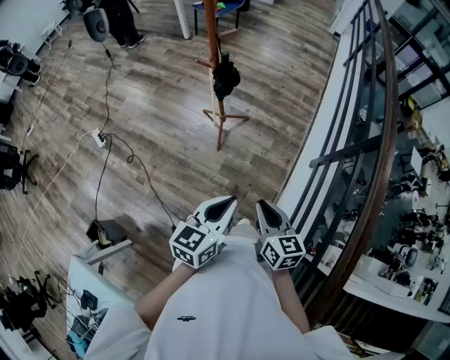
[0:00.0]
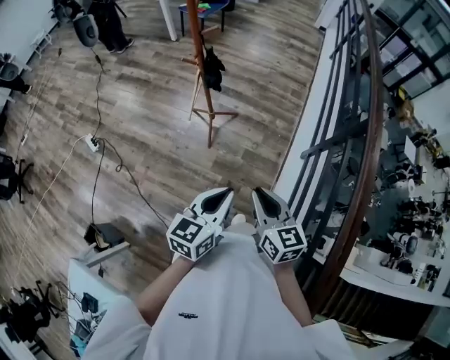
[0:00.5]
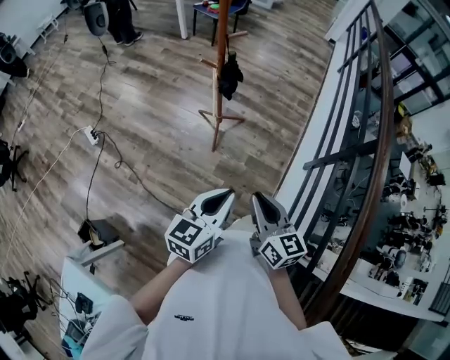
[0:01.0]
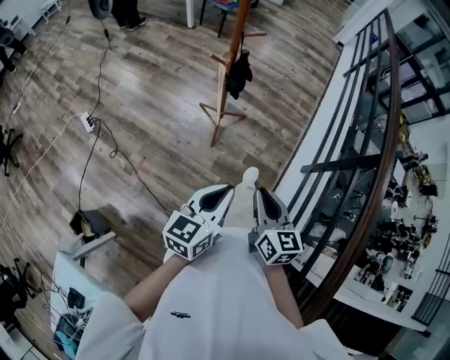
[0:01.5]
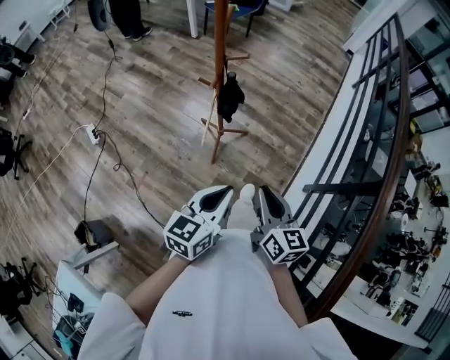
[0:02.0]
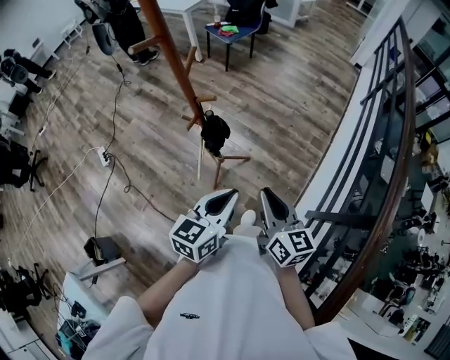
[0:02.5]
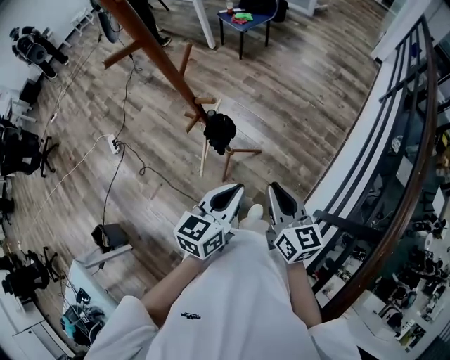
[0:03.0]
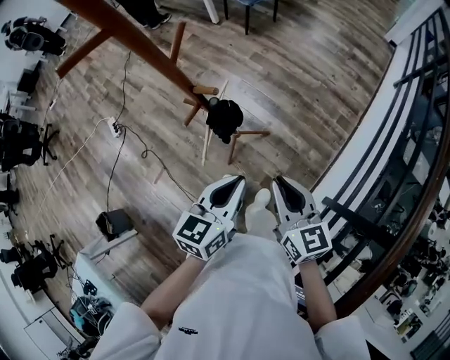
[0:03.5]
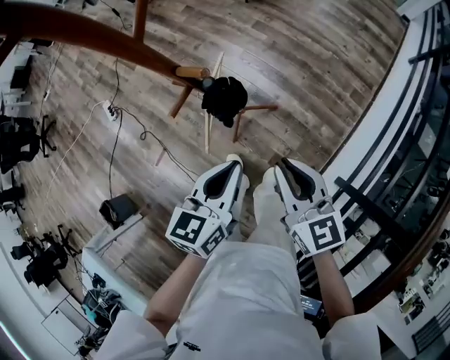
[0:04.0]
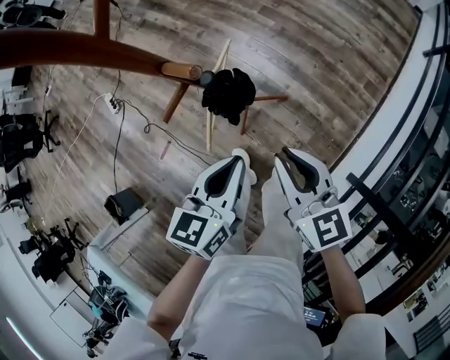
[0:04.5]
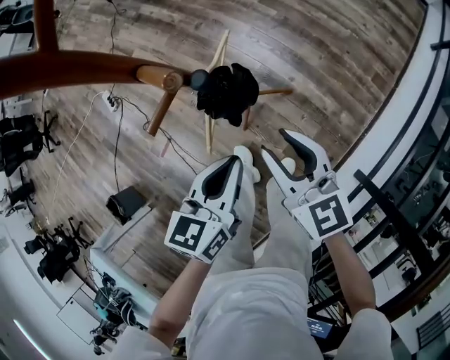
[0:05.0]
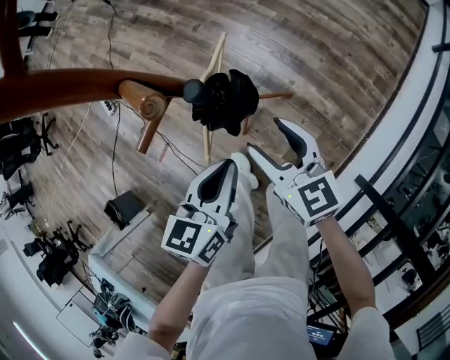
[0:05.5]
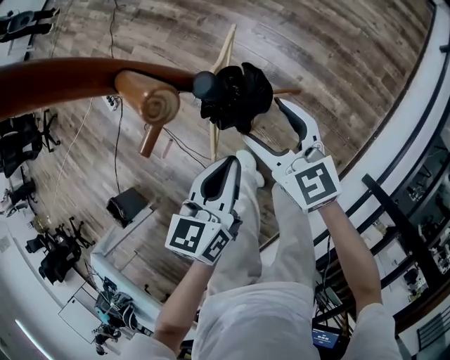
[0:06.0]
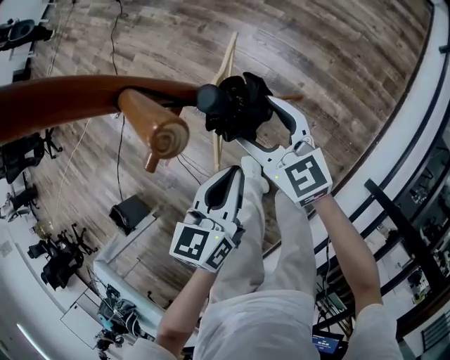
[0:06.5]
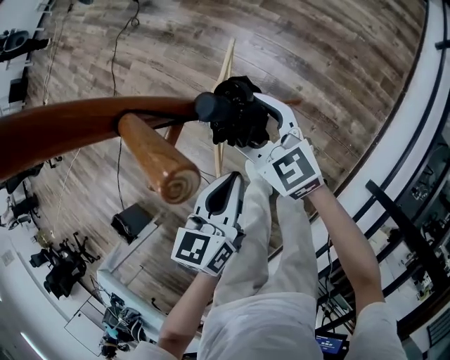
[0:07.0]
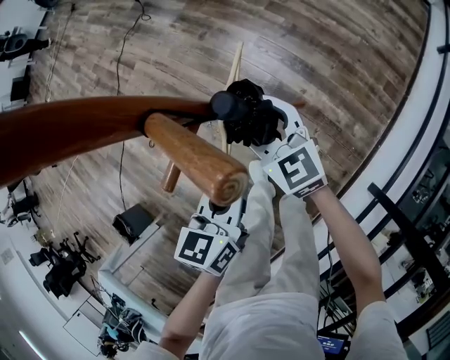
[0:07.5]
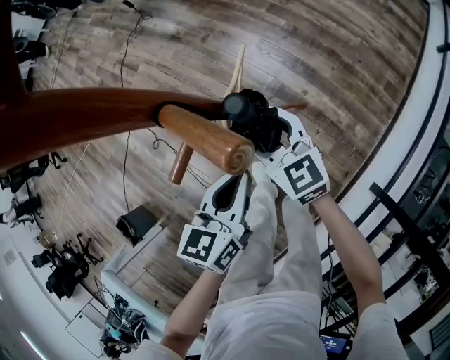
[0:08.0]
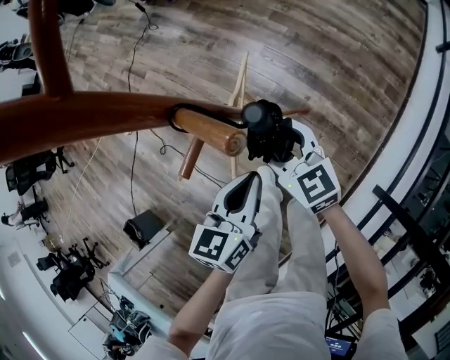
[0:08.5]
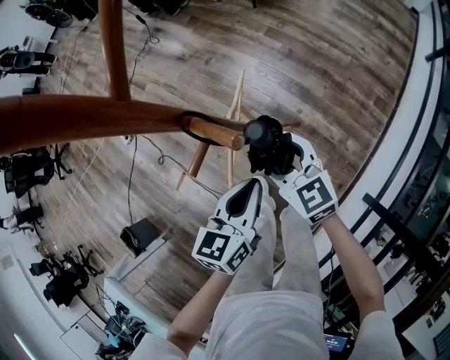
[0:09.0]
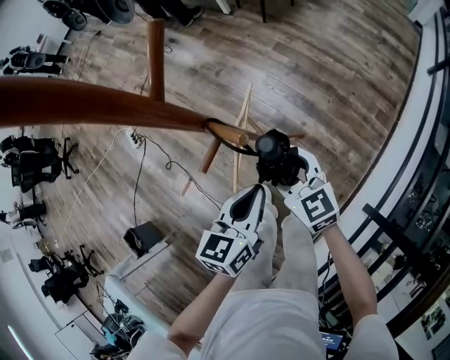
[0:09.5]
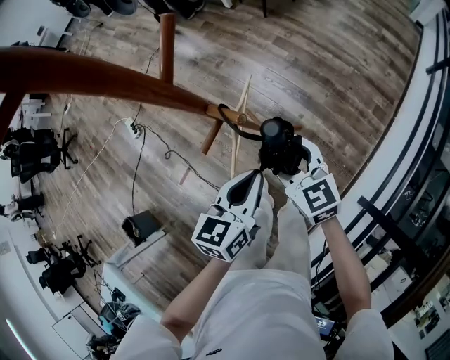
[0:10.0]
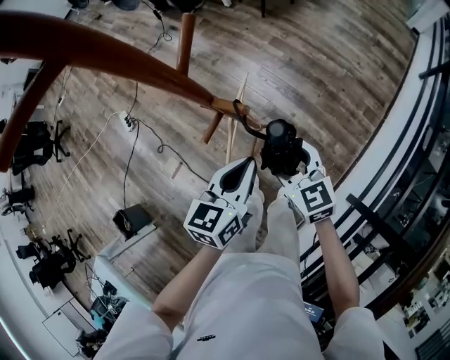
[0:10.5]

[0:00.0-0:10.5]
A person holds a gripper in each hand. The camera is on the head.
0:00.0 to 0:02.0: The two grippers go some 20 cm forward.
0:02.0 to 0:04.0: The left gripper travels forward and downward by roughly 30 cm. Meanwhile the right gripper shifts approximately 30 cm forward, and changes its angle by about 20 degrees.
0:04.0 to 0:06.5: The left gripper travels downward by roughly 20 cm. The right gripper moves downward, forward and to the left, about 30 cm, and opens its fingers.
0:06.5 to 0:08.5: The grippers stay close to where they were, moving slightly.
0:08.5 to 0:10.5: The right gripper moves upward, backward and to the right, about 20 cm, while the left gripper travels upward by about 15 cm.

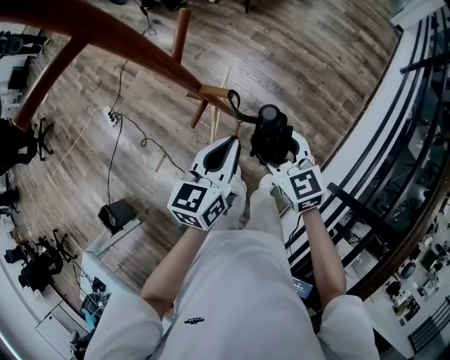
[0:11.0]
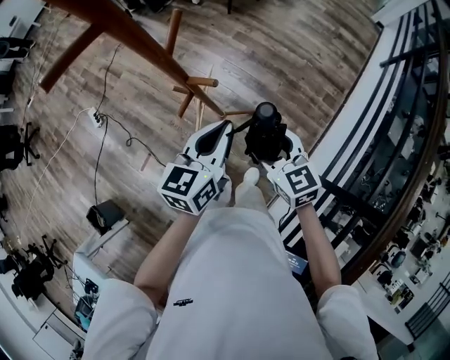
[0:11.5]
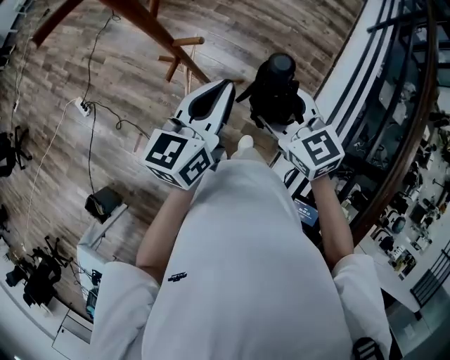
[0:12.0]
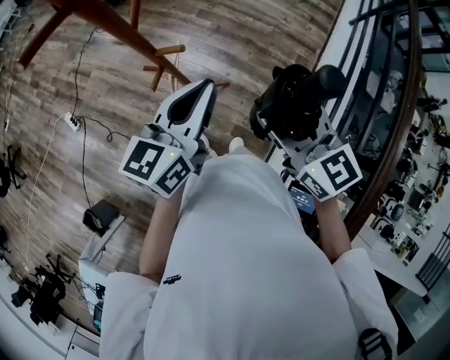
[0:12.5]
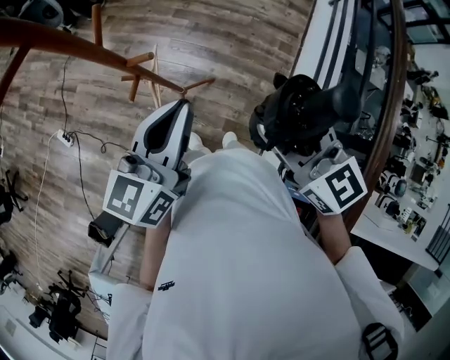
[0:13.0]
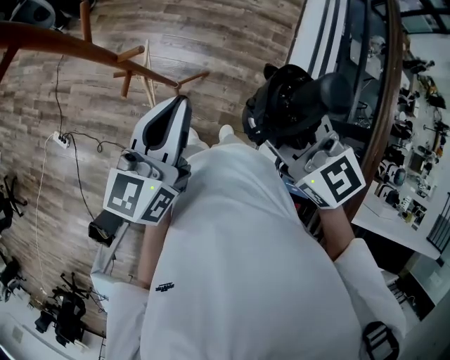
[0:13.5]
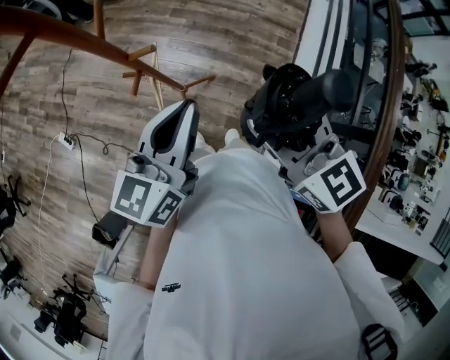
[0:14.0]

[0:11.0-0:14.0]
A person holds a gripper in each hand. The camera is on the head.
0:11.0 to 0:12.5: The right gripper heads upward and backward, covering roughly 20 cm. The left gripper is displaced upward by approximately 15 cm, and swivels some 20 degrees.
0:12.5 to 0:14.0: The right gripper shifts by roughly 5 cm. Meanwhile the left gripper heads backward, covering roughly 5 cm.

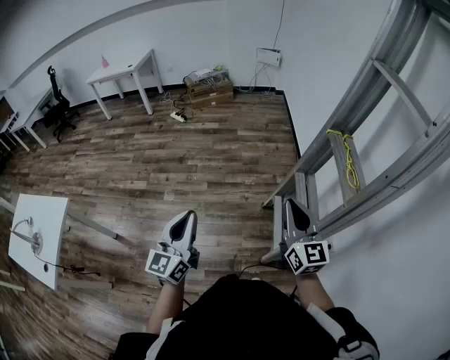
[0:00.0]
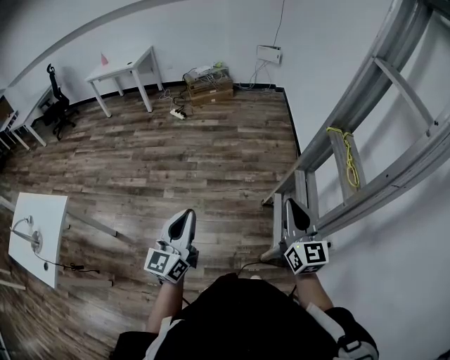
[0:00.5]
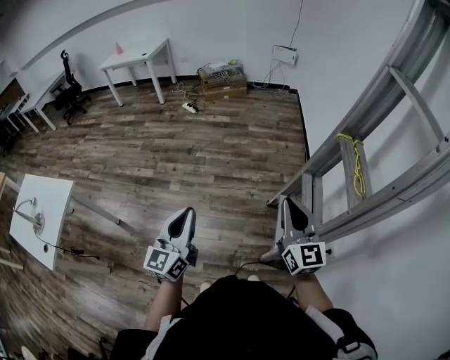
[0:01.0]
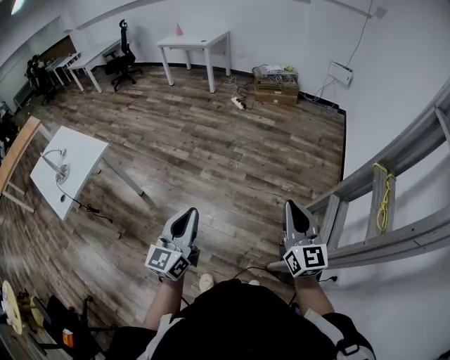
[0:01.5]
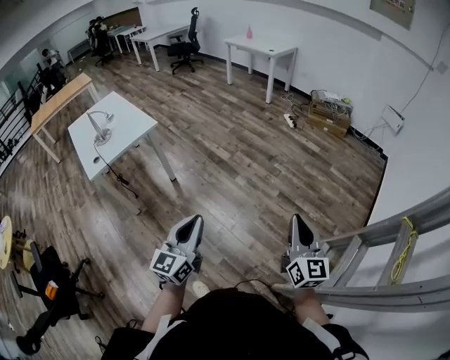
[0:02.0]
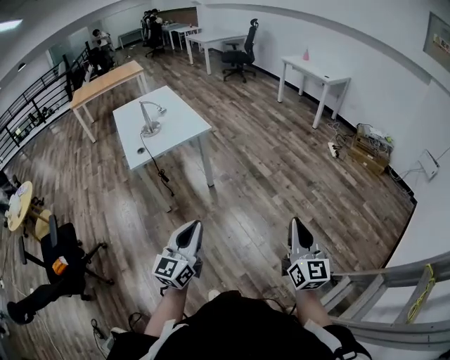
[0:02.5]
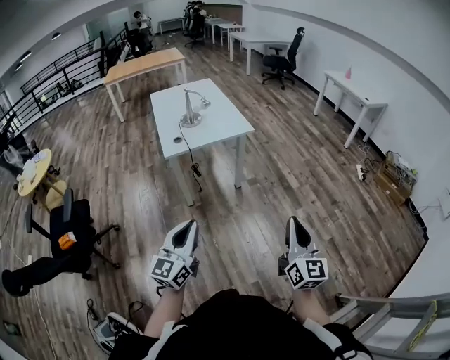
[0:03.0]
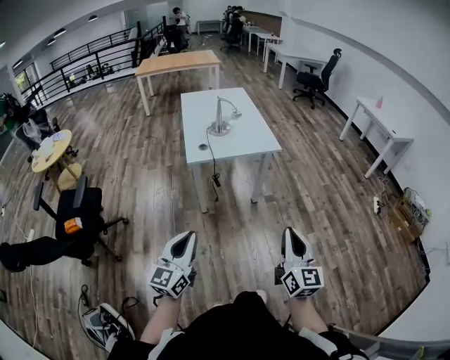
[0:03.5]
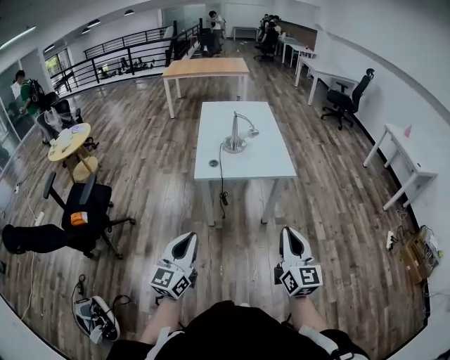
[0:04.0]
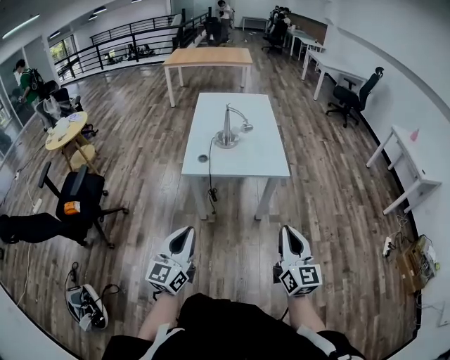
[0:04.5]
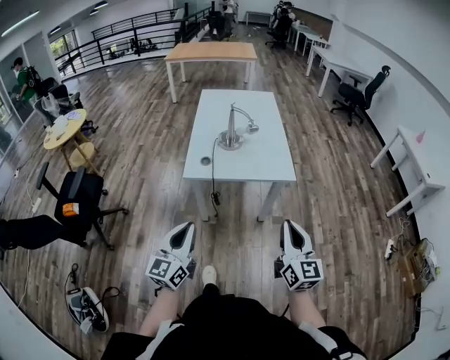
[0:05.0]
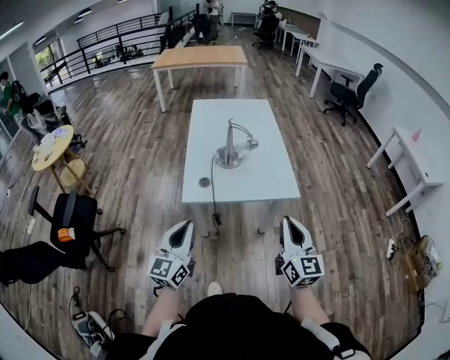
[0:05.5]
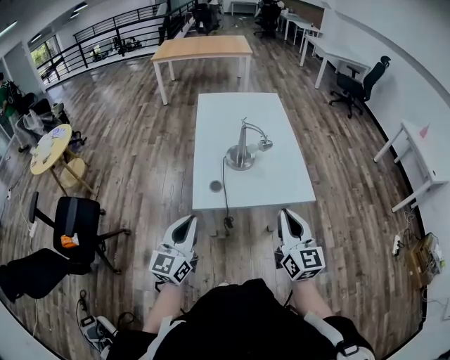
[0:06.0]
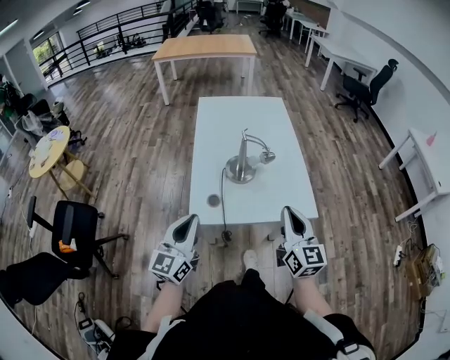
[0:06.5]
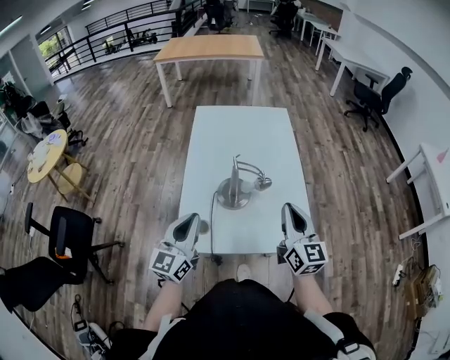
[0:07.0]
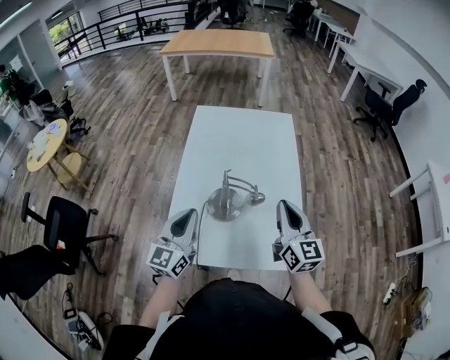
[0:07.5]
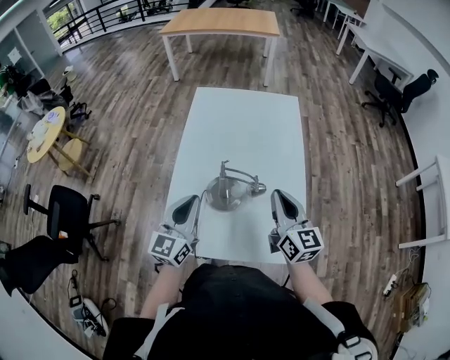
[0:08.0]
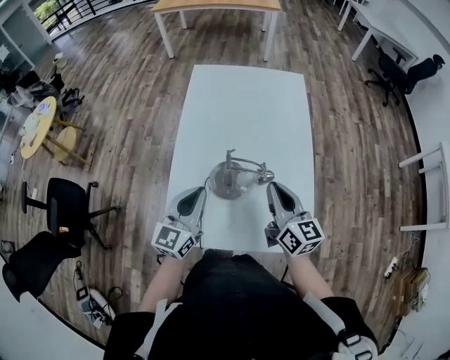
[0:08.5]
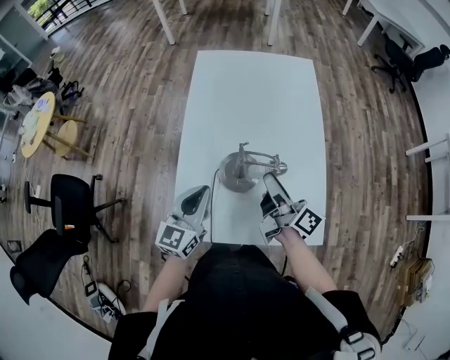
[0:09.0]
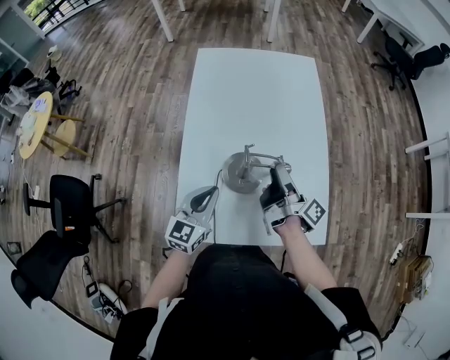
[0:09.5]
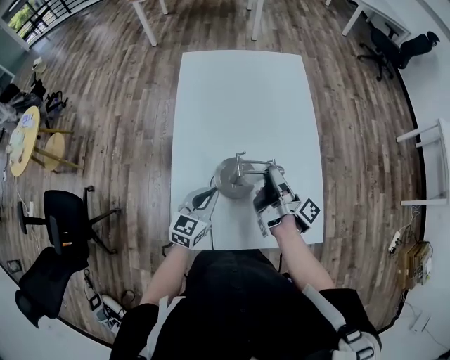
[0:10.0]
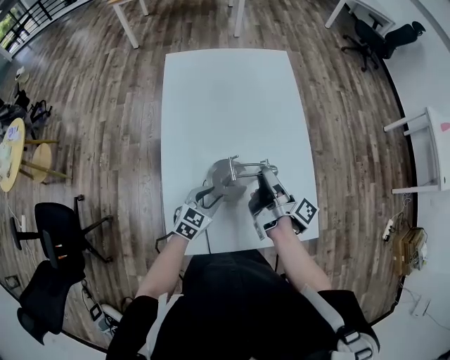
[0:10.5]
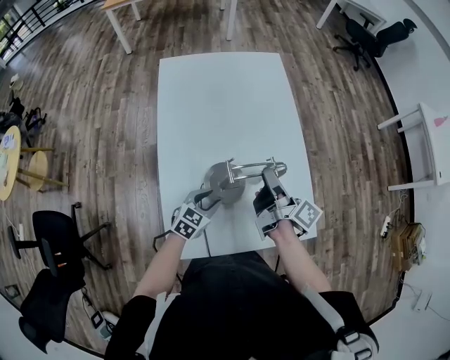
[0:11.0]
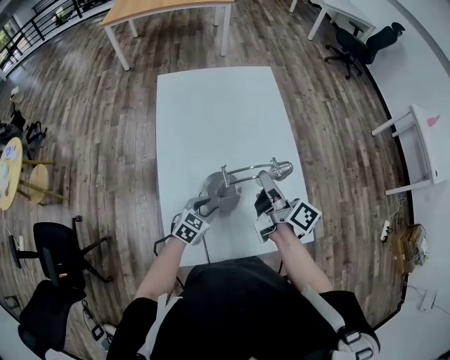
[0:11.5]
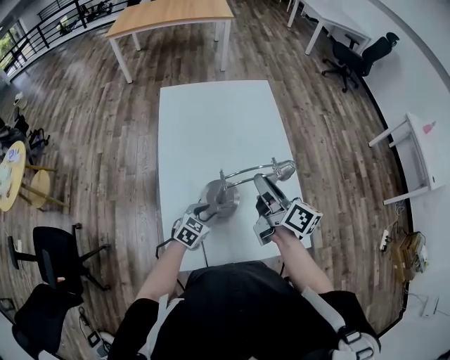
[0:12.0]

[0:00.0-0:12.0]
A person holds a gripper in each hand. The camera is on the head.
0:00.0 to 0:02.0: The right gripper moves approximately 20 cm, and changes its angle by roughly 40 degrees. The left gripper shifts by about 20 cm, and turns by some 40 degrees.
0:02.0 to 0:04.0: The left gripper changes place by approximately 40 cm, and turns by roughly 50 degrees; the right gripper moves approximately 50 cm, and changes its angle by some 50 degrees.
0:04.0 to 0:06.0: The grippers both shift forward by approximately 30 cm.
0:06.0 to 0:08.0: Both grippers travel together forward, approximately 30 cm.
0:08.0 to 0:10.0: The grippers both shift downward by some 15 cm. The right gripper twists roughly 80 degrees clockwise, seen from behind, and opens up. The left gripper changes its angle by approximately 30 degrees.
0:10.0 to 0:12.0: The left gripper is displaced downward by about 10 cm, changes its angle by roughly 30 degrees, and opens; the right gripper heads upward, covering some 10 cm, and rolls counterclockwise, seen from behind, by approximately 40 degrees.

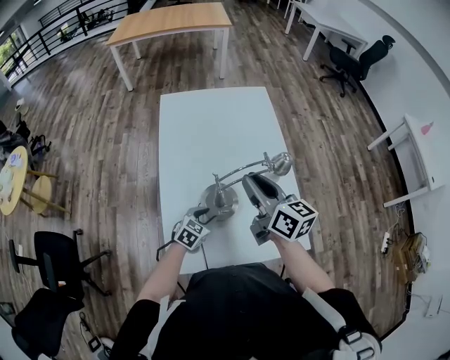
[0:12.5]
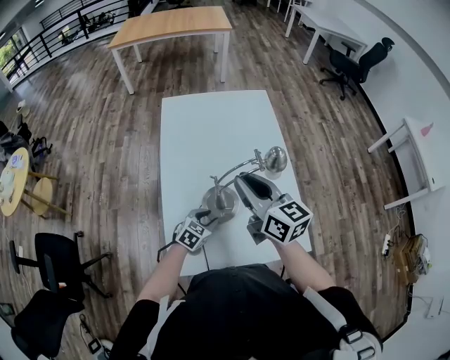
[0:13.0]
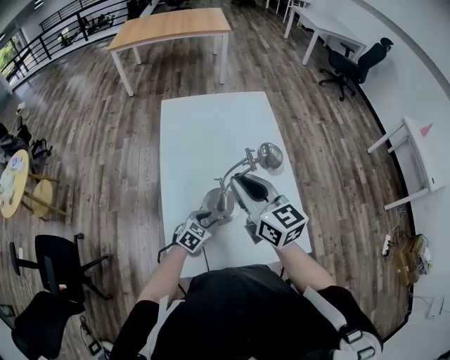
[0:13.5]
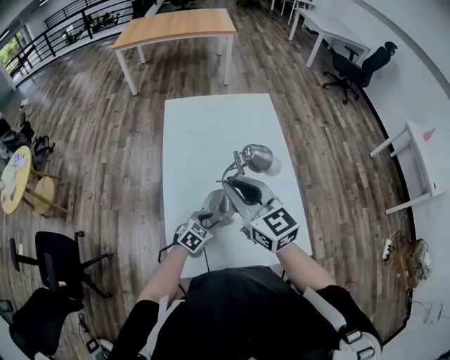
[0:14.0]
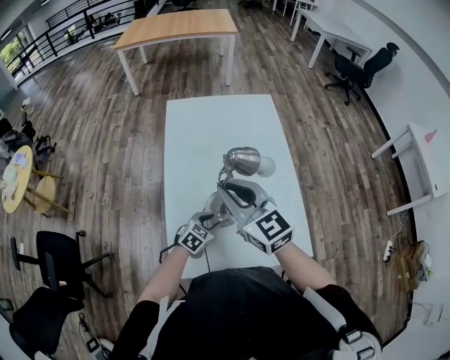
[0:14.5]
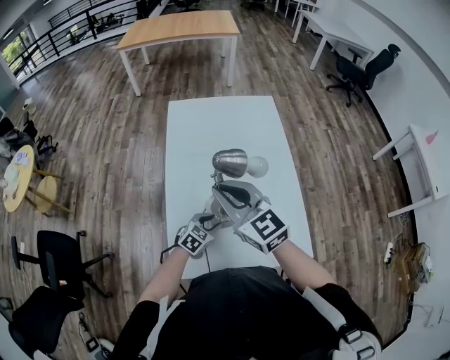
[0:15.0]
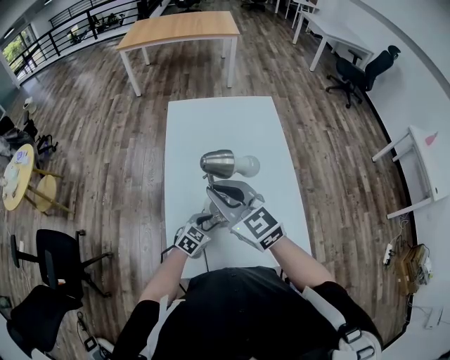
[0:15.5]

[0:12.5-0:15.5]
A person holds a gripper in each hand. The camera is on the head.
0:12.5 to 0:14.0: The right gripper shifts some 5 cm to the left, and turns by roughly 30 degrees.
0:14.0 to 0:15.5: The grippers stay close to where they were, moving slightly.
